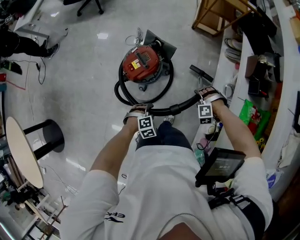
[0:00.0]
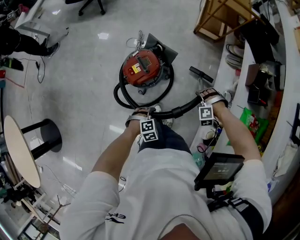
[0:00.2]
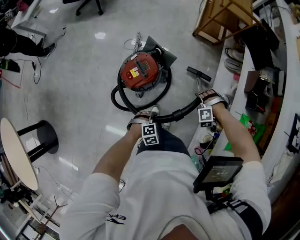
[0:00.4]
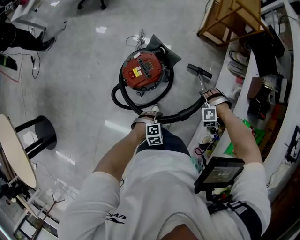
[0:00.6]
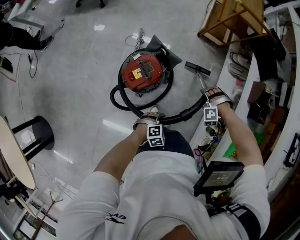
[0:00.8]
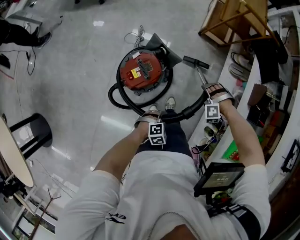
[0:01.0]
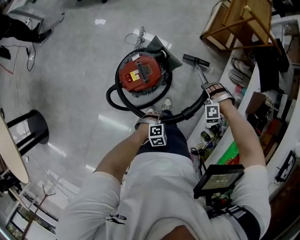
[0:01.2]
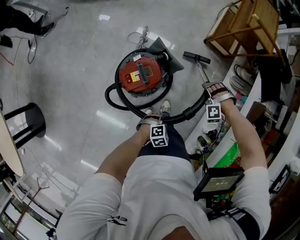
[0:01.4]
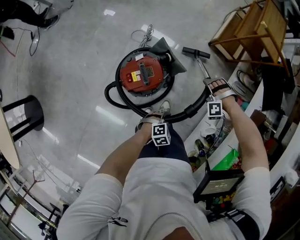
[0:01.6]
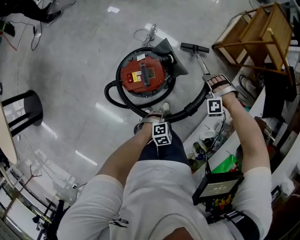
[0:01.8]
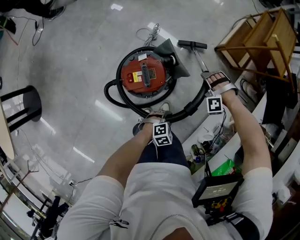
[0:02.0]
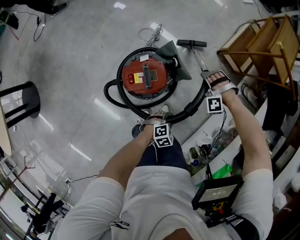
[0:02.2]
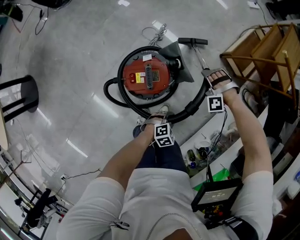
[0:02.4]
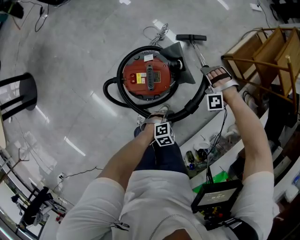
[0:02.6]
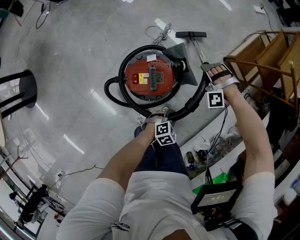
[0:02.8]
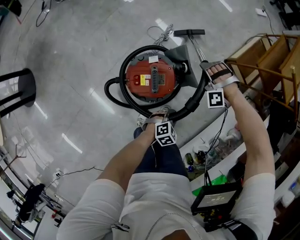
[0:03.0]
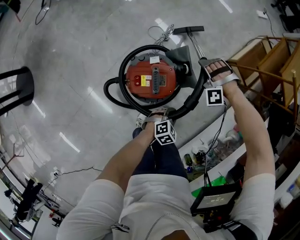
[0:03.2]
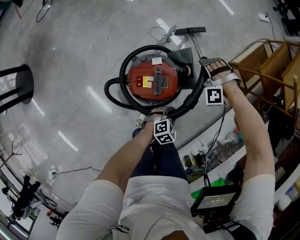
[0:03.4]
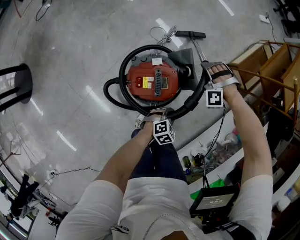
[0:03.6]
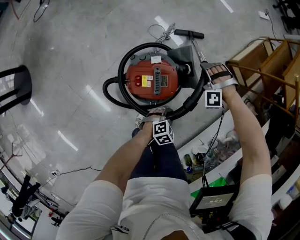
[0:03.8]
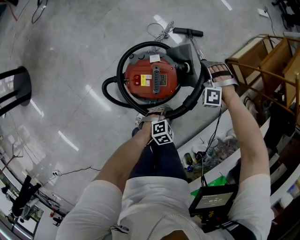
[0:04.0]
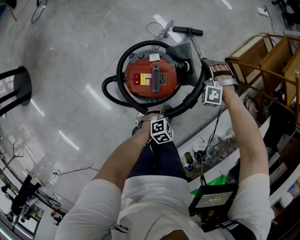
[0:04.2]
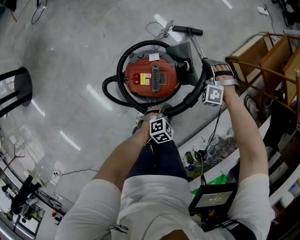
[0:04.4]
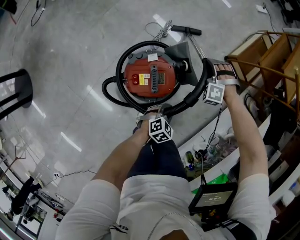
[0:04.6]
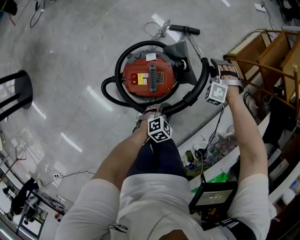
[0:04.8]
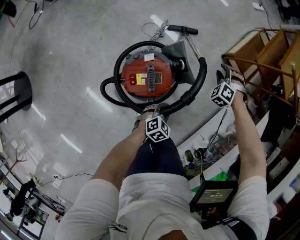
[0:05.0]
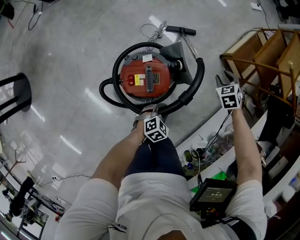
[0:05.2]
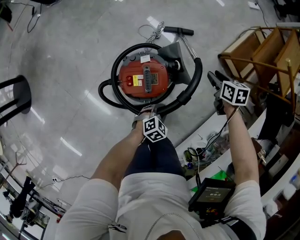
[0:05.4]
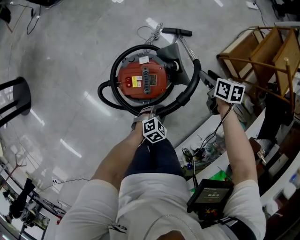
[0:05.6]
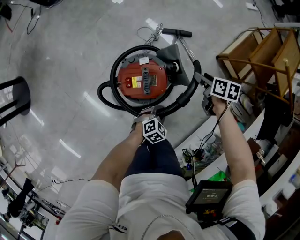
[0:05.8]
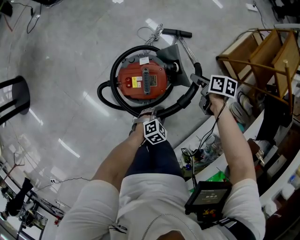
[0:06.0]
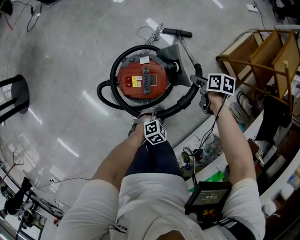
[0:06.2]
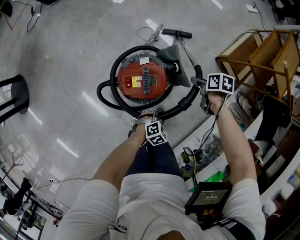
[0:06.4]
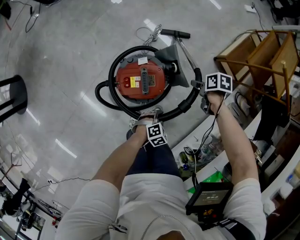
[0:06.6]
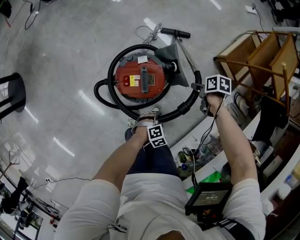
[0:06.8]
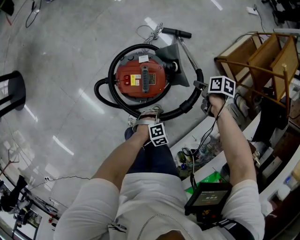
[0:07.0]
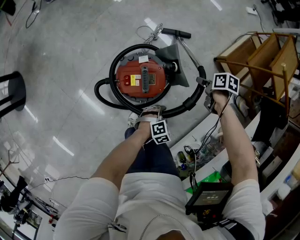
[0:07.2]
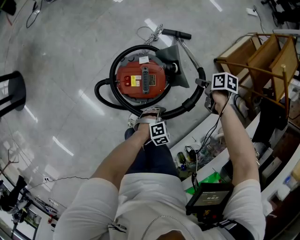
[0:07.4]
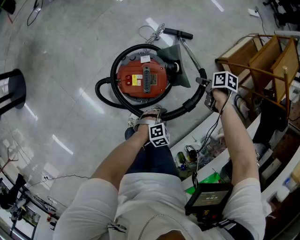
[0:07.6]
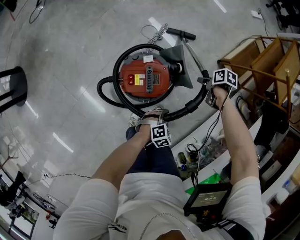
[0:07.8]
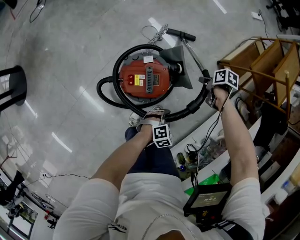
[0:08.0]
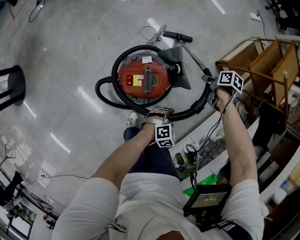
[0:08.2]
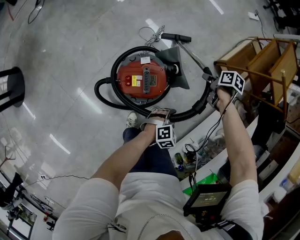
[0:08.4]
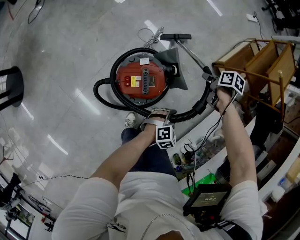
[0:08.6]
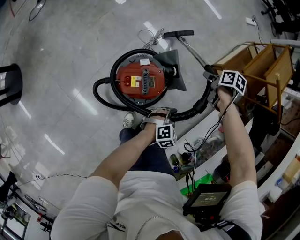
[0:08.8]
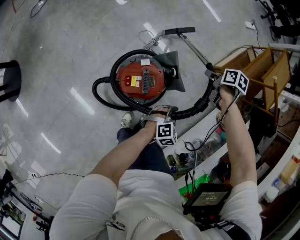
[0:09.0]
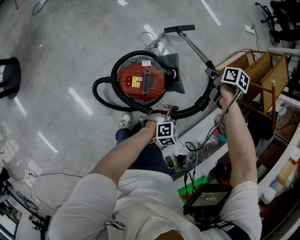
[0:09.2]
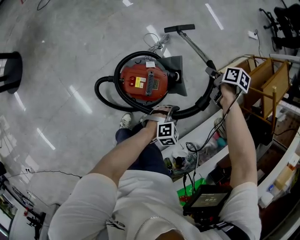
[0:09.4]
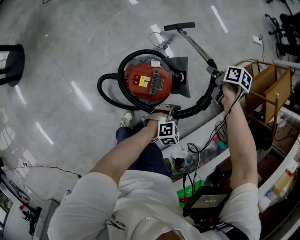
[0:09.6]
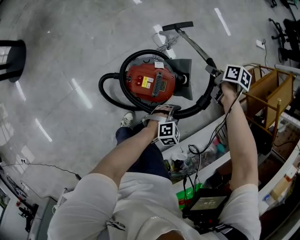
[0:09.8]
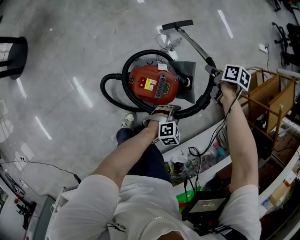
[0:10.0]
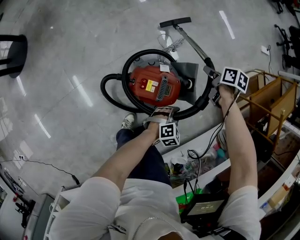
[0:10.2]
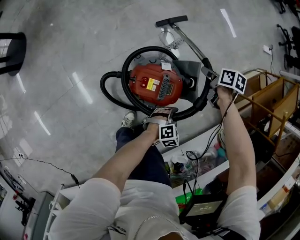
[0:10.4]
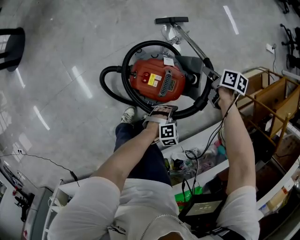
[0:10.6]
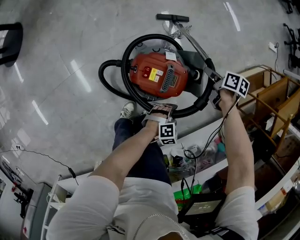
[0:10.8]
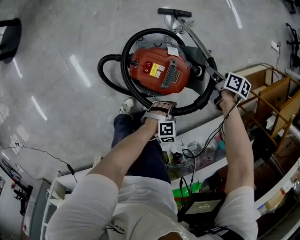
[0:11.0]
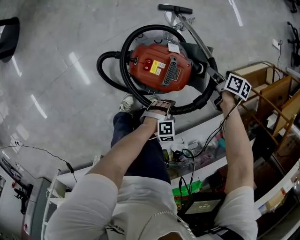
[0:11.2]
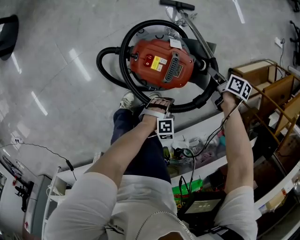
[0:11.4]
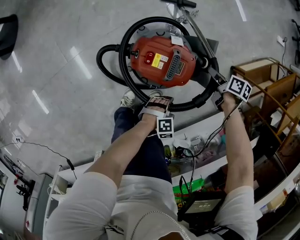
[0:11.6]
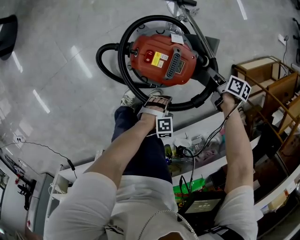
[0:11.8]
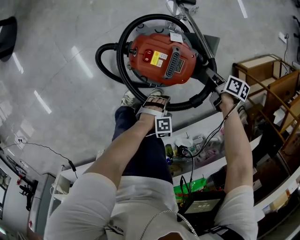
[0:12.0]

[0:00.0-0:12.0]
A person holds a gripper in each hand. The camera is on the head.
0:00.0 to 0:01.6: The right gripper heads forward and to the left, covering about 30 cm, and rotates approximately 30 degrees. The left gripper shifts some 20 cm forward, and rotates some 20 degrees.
0:01.6 to 0:03.0: The left gripper goes about 10 cm forward and downward, and rotates approximately 20 degrees; the right gripper travels to the left and forward by approximately 20 cm.
0:03.0 to 0:04.4: The grippers move only a little.
0:04.4 to 0:06.0: The right gripper twists some 120 degrees clockwise, seen from behind, and opens.
0:07.6 to 0:09.0: The two grippers go some 10 cm upward.
0:09.0 to 0:10.4: The right gripper travels to the left and downward by about 15 cm, and changes its angle by about 20 degrees, while the left gripper travels downward and to the left by about 10 cm.
0:10.4 to 0:12.0: Both grippers move downward and backward, roughly 15 cm.

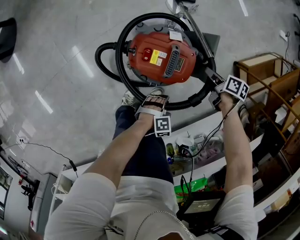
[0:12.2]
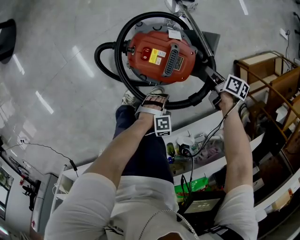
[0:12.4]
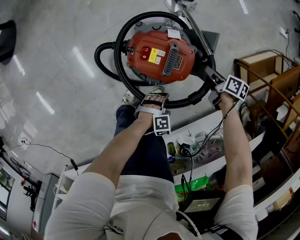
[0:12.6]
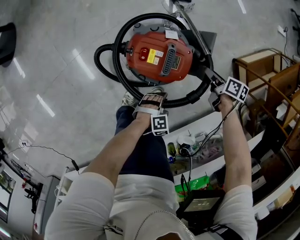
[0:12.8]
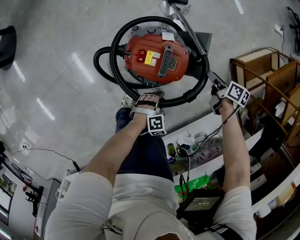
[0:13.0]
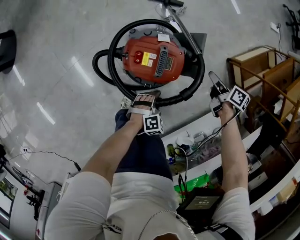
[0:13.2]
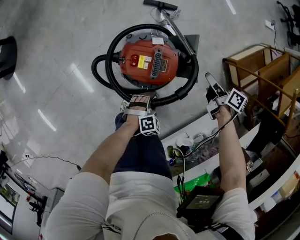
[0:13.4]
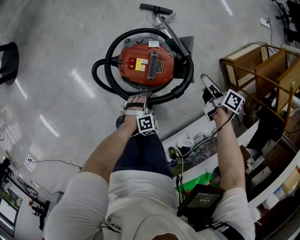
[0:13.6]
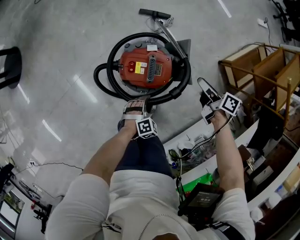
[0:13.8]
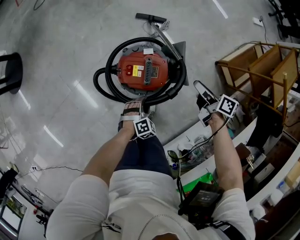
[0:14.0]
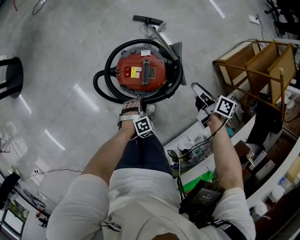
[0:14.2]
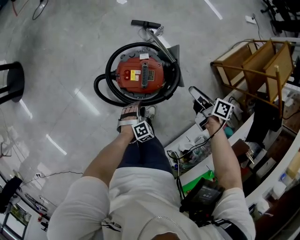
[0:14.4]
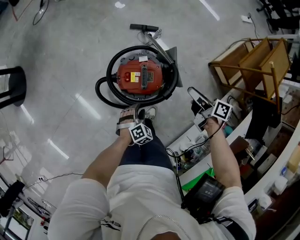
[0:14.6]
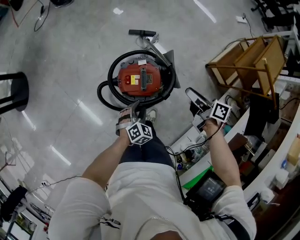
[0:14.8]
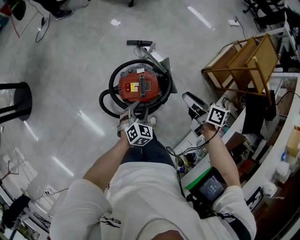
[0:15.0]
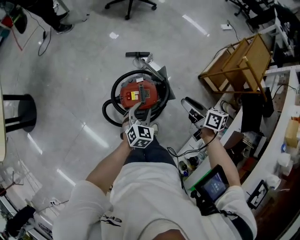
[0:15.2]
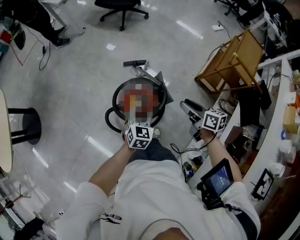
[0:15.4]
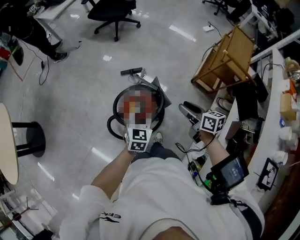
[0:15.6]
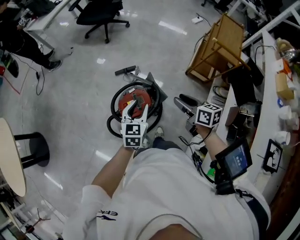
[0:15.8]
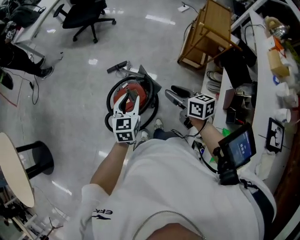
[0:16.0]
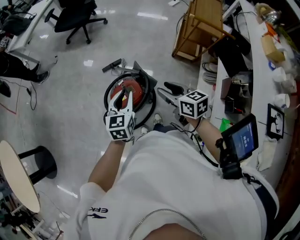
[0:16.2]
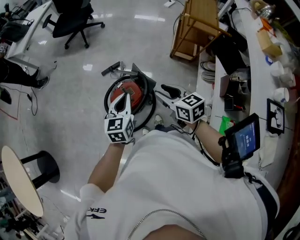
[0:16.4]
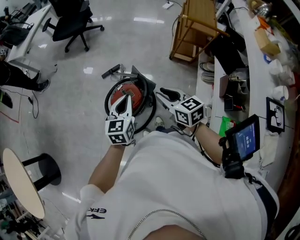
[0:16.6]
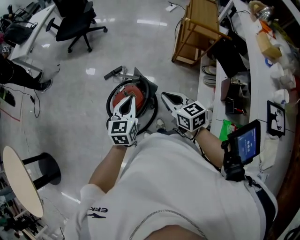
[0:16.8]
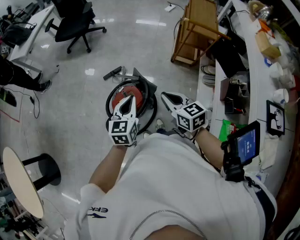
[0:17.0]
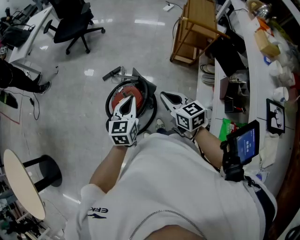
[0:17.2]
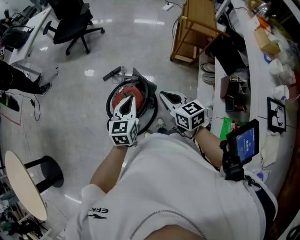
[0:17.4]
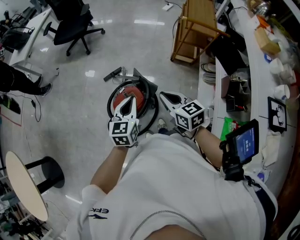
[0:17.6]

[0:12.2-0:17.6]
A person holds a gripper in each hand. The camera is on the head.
0:12.2 to 0:13.6: The left gripper moves upward, some 5 cm. Meanwhile the right gripper shifts some 15 cm upward, and rotates about 30 degrees.
0:13.6 to 0:15.0: The grippers both shift upward by roughly 20 cm. The left gripper changes its angle by some 20 degrees.
0:15.0 to 0:16.2: The left gripper heads upward, covering about 25 cm, and swivels about 30 degrees. The right gripper goes roughly 15 cm upward and backward, and swivels some 30 degrees.
0:16.2 to 0:17.6: The left gripper closes up; the right gripper closes its fingers.

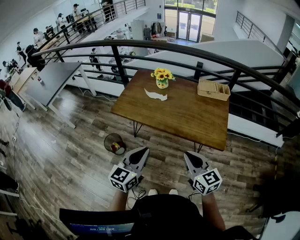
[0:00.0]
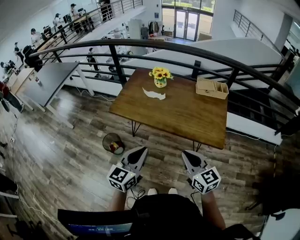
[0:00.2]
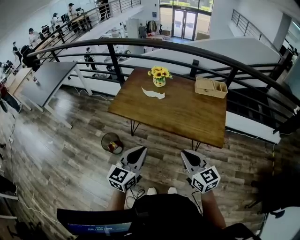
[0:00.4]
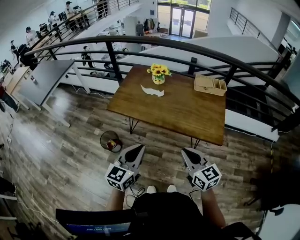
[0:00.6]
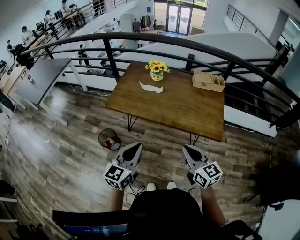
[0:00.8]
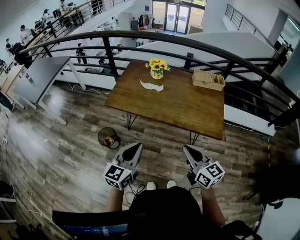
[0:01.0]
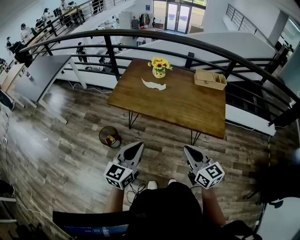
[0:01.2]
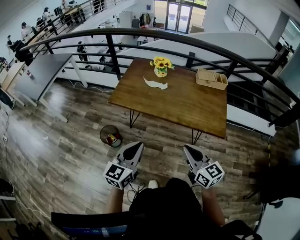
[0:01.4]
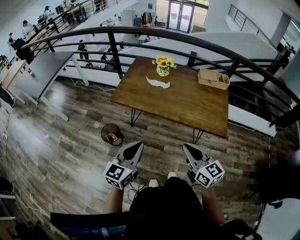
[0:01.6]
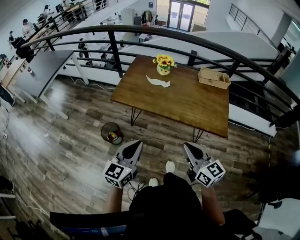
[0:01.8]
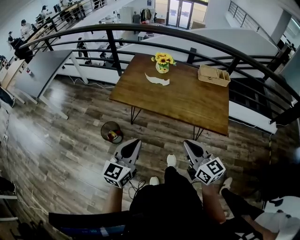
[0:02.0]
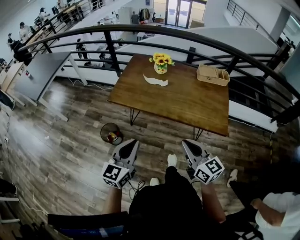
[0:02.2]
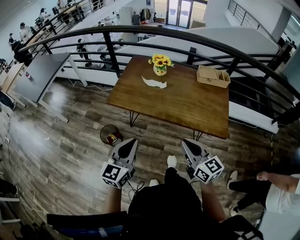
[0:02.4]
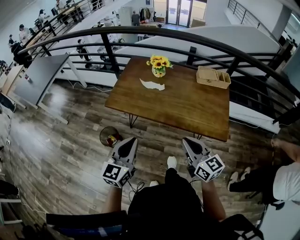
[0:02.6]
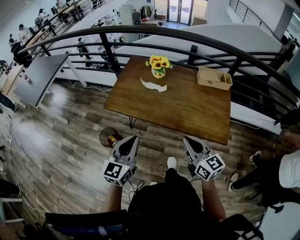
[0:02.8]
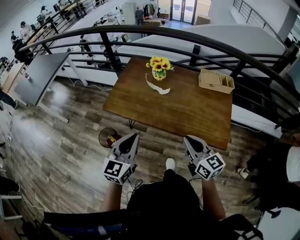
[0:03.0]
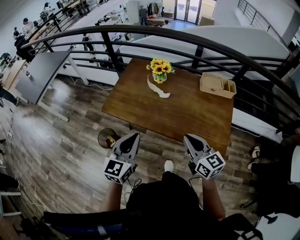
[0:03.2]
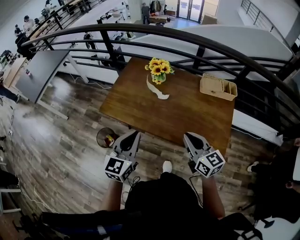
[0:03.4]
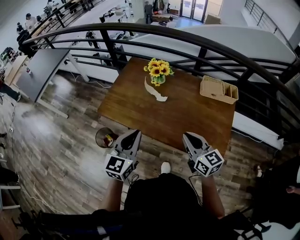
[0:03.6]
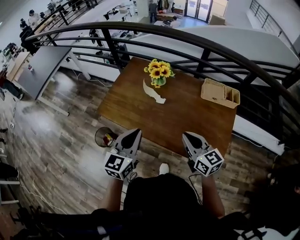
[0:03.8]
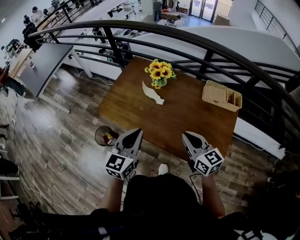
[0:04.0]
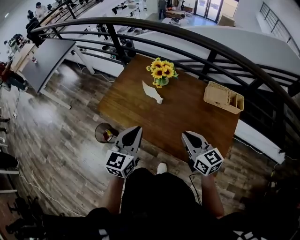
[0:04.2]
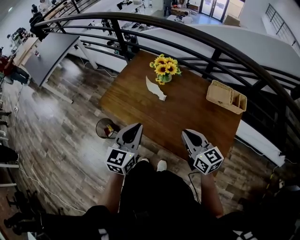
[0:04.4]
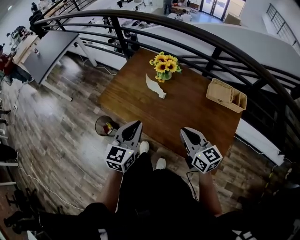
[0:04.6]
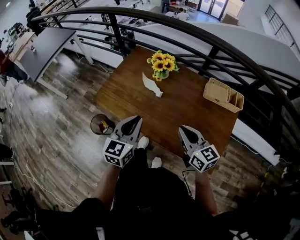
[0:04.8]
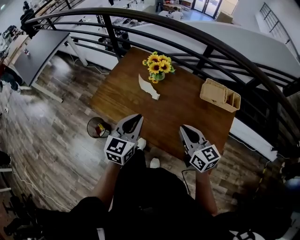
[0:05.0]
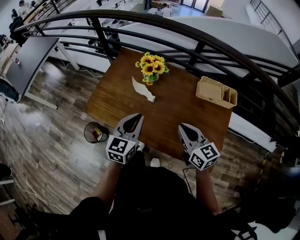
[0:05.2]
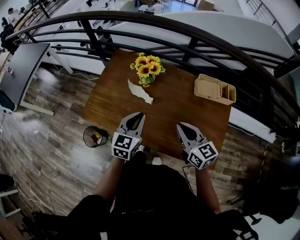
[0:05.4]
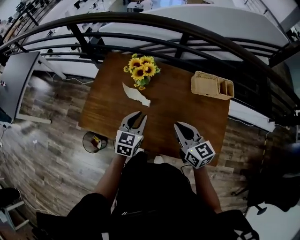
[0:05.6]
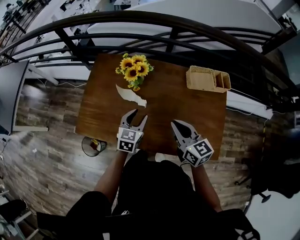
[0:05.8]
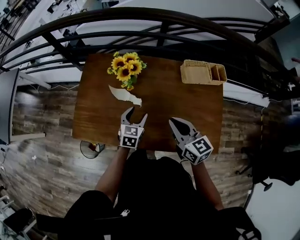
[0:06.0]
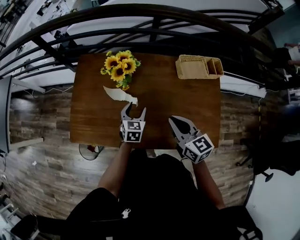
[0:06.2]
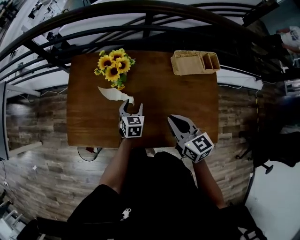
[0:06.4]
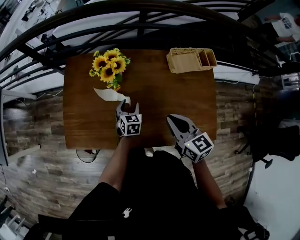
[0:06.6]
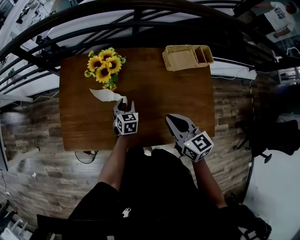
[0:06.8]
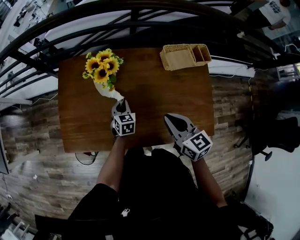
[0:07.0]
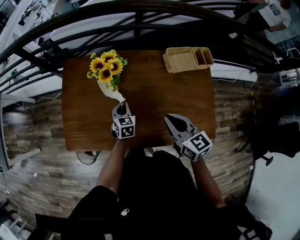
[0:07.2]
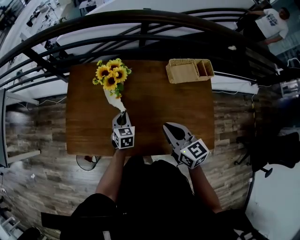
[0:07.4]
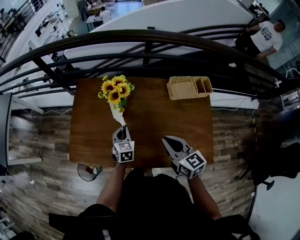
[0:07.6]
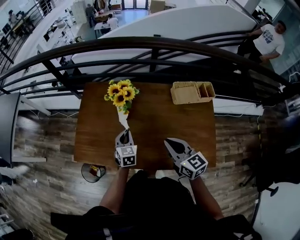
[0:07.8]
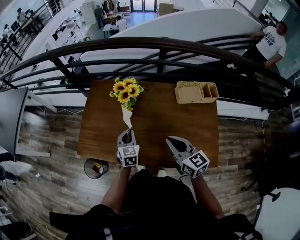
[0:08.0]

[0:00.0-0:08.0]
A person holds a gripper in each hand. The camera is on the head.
0:00.0 to 0:01.6: Both grippers travel together to the left, roughly 10 cm.
0:01.6 to 0:03.2: Both grippers move forward and to the right, approximately 20 cm.
0:03.2 to 0:04.8: The two grippers go approximately 15 cm forward and to the right.
0:04.8 to 0:06.4: The right gripper goes about 10 cm forward and downward, and rotates roughly 30 degrees; the left gripper heads downward and forward, covering roughly 35 cm, changes its angle by roughly 30 degrees, and opens up.
0:06.4 to 0:08.0: The left gripper travels upward, to the left and backward by some 10 cm, and closes up, while the right gripper ends up some 5 cm from where it was.
